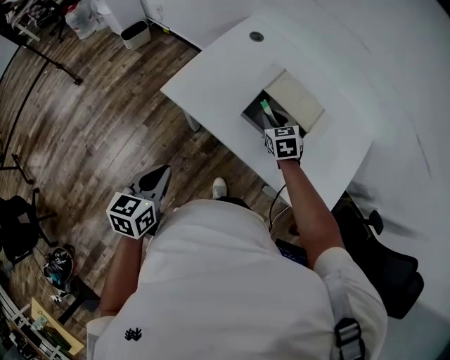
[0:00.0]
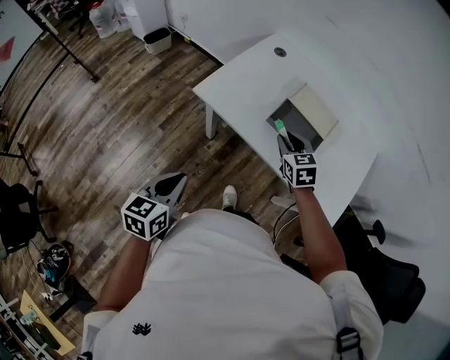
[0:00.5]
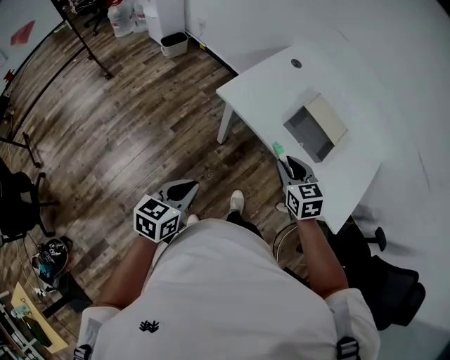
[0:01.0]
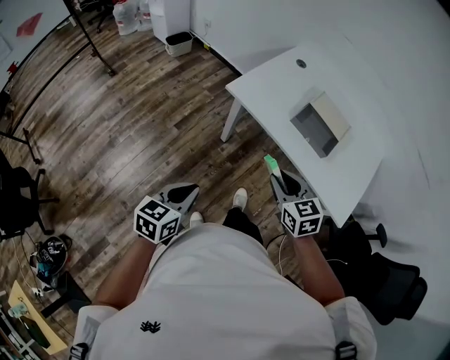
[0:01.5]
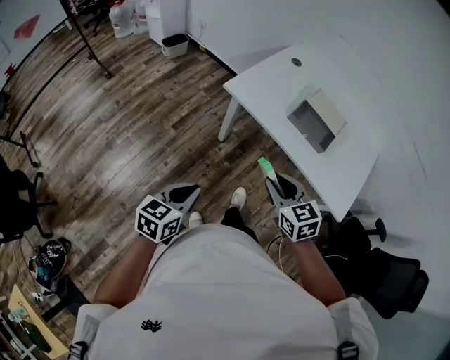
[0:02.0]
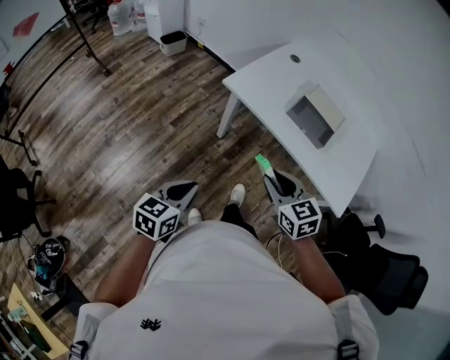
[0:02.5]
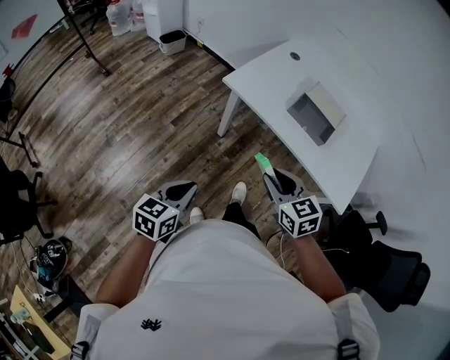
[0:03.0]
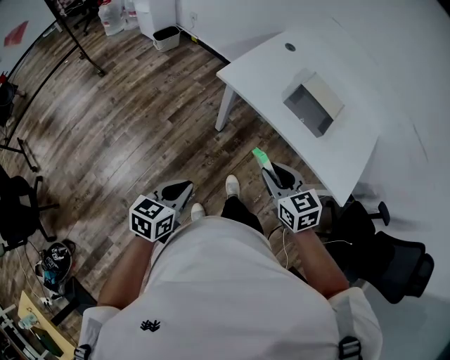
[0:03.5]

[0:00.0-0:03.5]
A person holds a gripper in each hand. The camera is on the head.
0:00.0 to 0:02.0: The right gripper heads backward and to the left, covering about 35 cm. The left gripper travels backward and to the left by some 20 cm.
0:02.0 to 0:03.5: The grippers make only small movements.

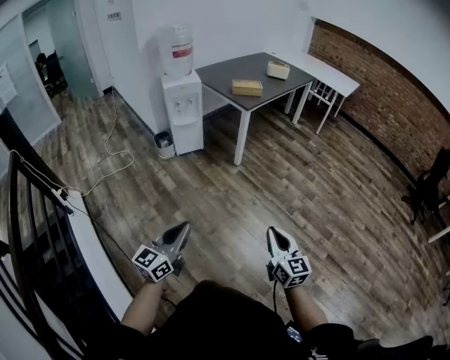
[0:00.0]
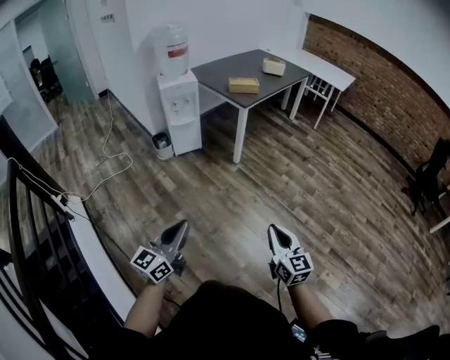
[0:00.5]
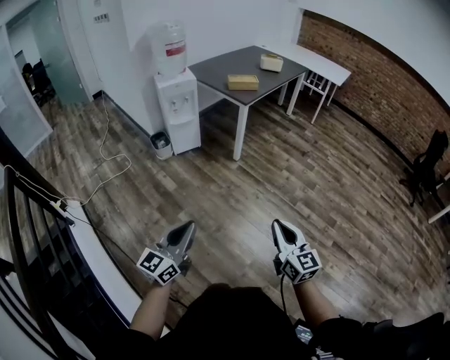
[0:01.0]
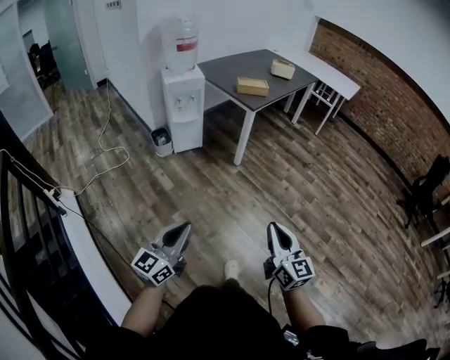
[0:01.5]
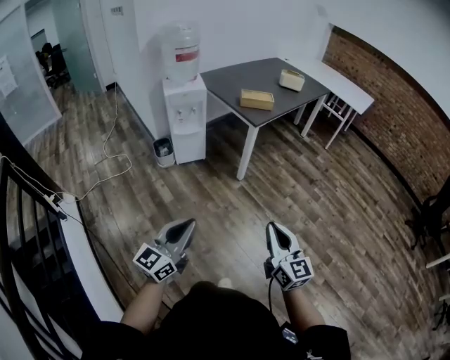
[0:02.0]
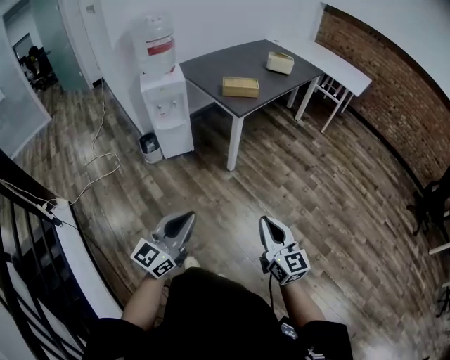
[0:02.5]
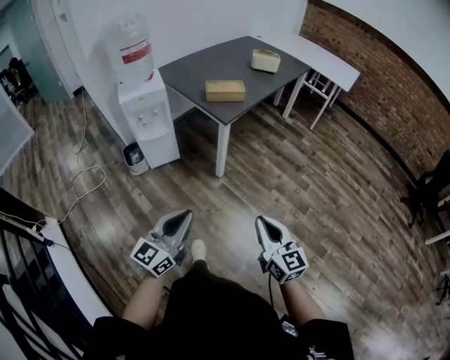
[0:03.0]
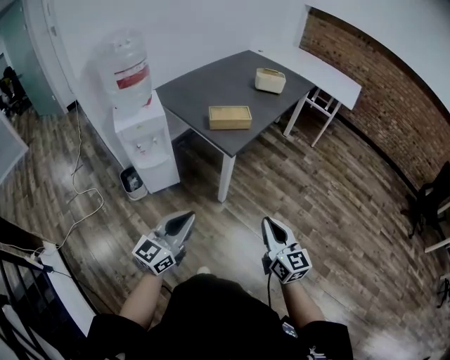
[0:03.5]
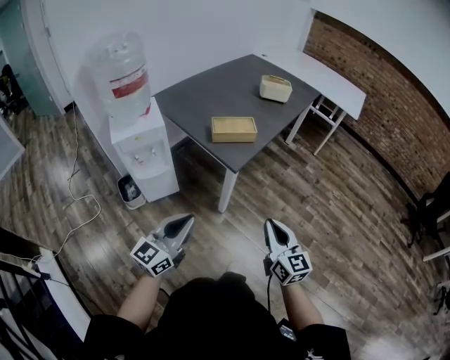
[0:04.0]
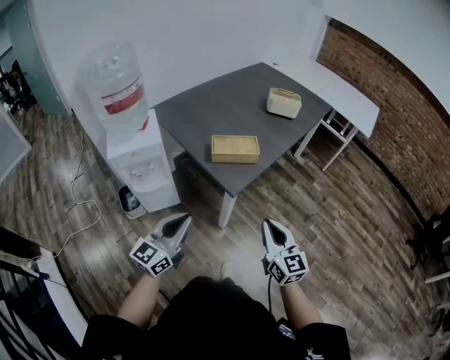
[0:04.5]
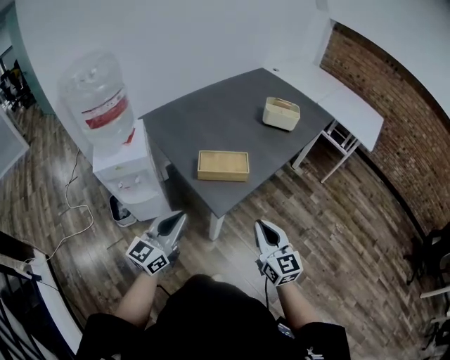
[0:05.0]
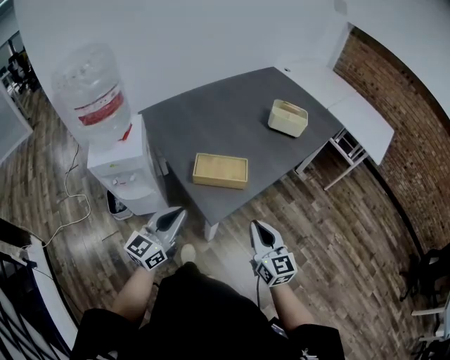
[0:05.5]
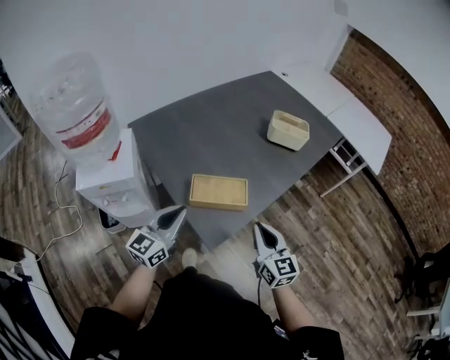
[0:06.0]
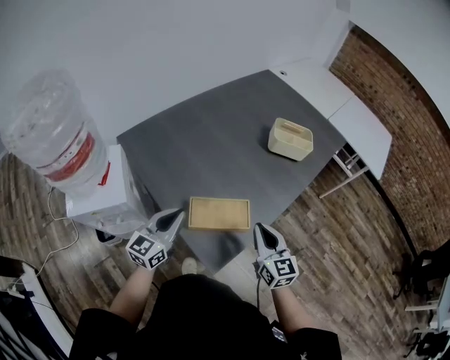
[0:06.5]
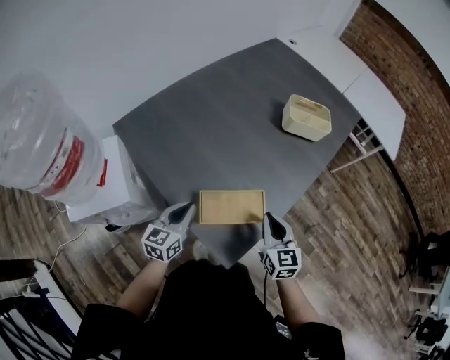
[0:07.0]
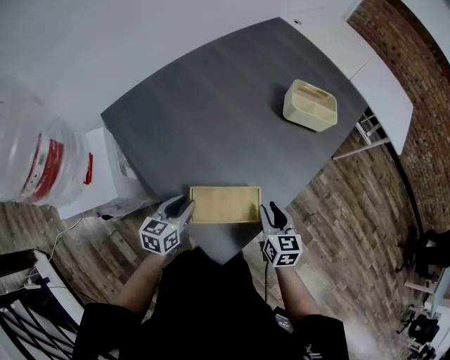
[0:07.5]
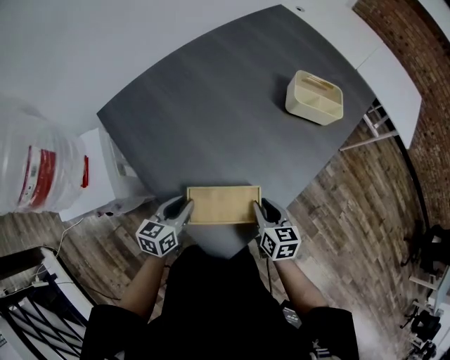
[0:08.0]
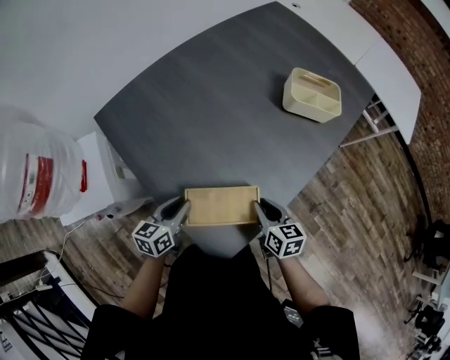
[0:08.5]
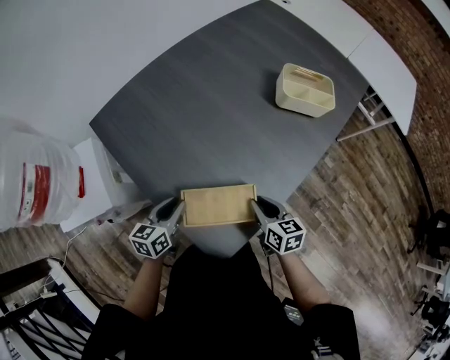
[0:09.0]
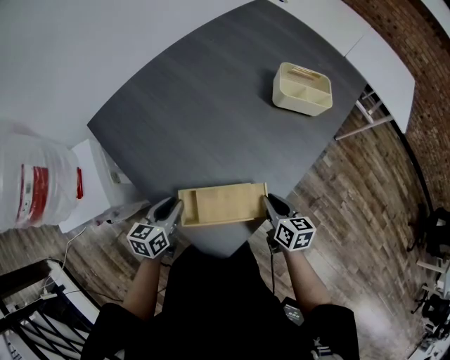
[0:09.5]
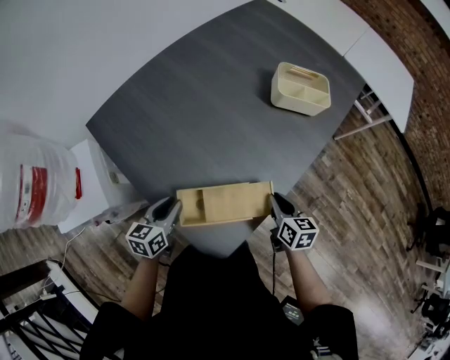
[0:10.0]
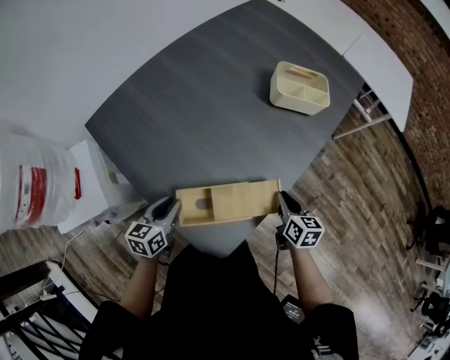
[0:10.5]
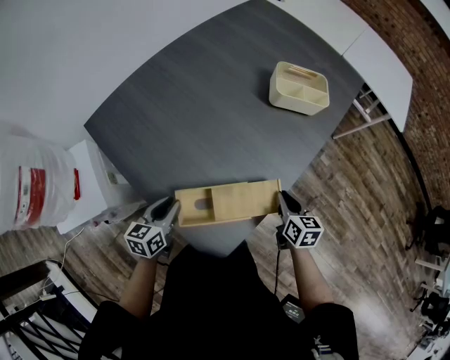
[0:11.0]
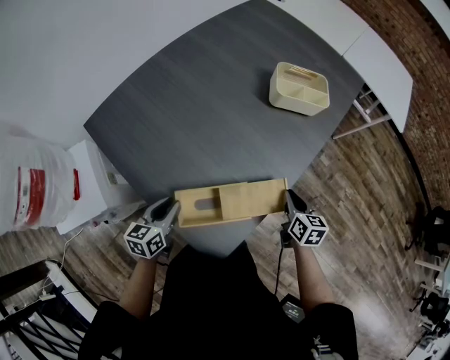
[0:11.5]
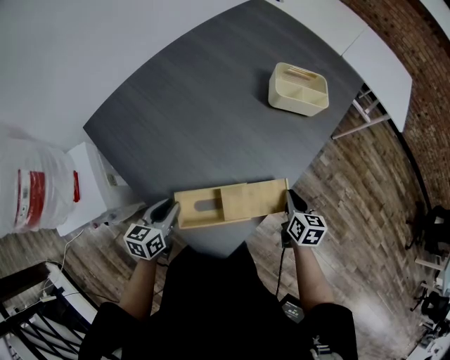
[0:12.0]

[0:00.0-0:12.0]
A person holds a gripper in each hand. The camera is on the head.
0:00.0 to 0:02.0: Both grippers travel together forward, some 15 cm.
0:02.0 to 0:04.0: The grippers both shift forward by some 35 cm.
0:04.0 to 0:06.0: Both grippers travel together forward, approximately 35 cm.
0:06.0 to 0:08.0: Both grippers move downward and forward, about 20 cm. The left gripper rotates roughly 30 degrees, and opens. Meanwhile the right gripper swivels roughly 30 degrees, and opens.
0:08.0 to 0:10.0: The right gripper heads to the right, covering some 5 cm.
0:10.0 to 0:12.0: The right gripper travels to the right by about 5 cm.

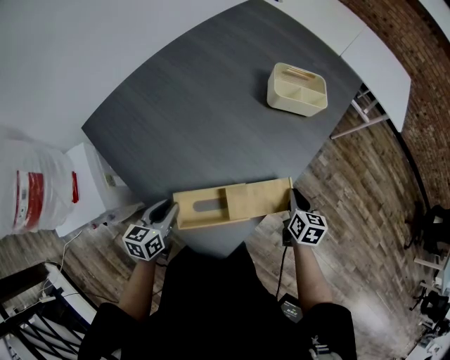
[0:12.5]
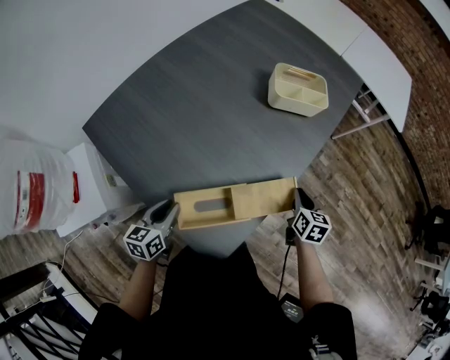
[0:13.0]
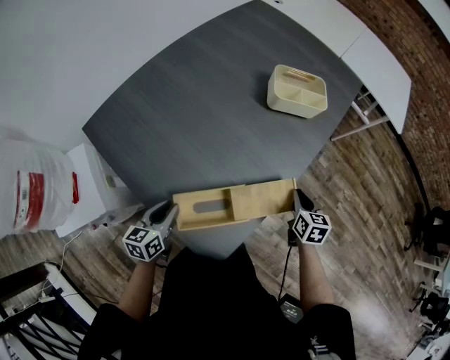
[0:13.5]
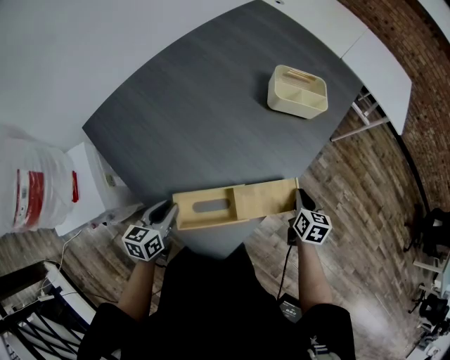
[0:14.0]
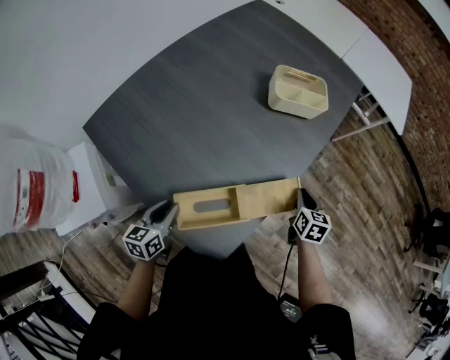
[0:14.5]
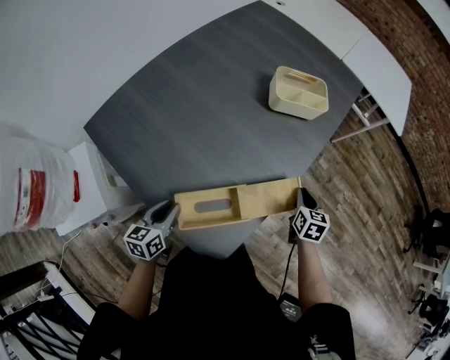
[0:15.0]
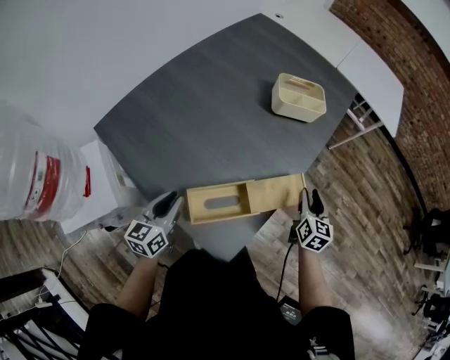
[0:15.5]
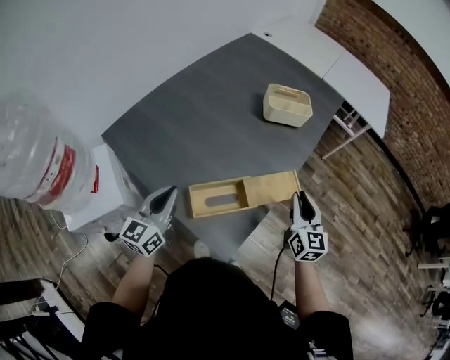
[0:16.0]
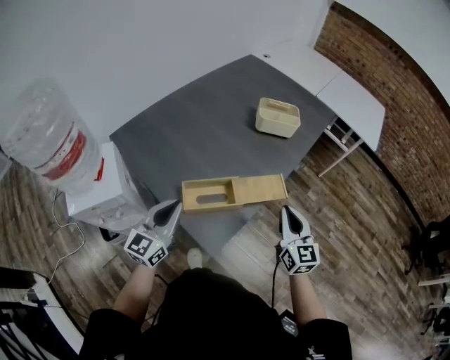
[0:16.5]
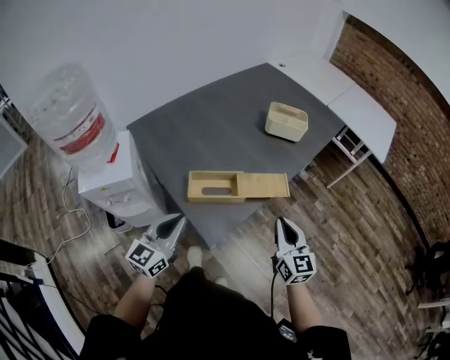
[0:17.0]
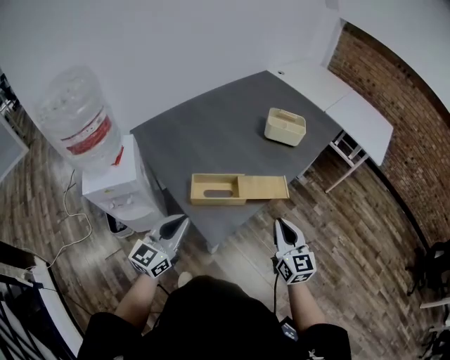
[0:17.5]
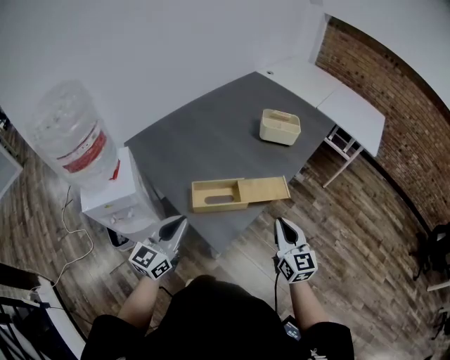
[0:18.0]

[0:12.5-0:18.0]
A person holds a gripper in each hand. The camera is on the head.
0:12.5 to 0:14.5: The grippers make only small movements.
0:14.5 to 0:16.0: The right gripper heads upward and backward, covering roughly 15 cm, points its fingers some 30 degrees further upward, and opens, then closes again, while the left gripper heads upward, covering roughly 15 cm, rotates about 30 degrees, and closes.
0:16.0 to 0:18.0: The left gripper travels backward and to the right by roughly 15 cm, while the right gripper goes roughly 10 cm backward.

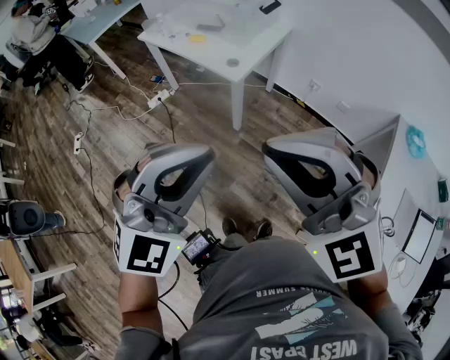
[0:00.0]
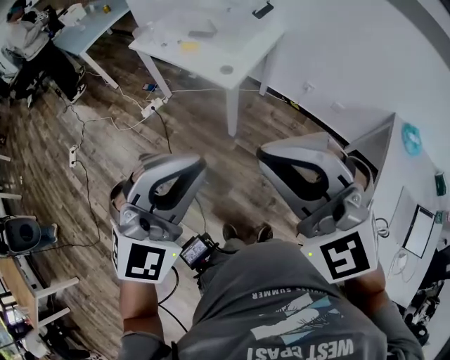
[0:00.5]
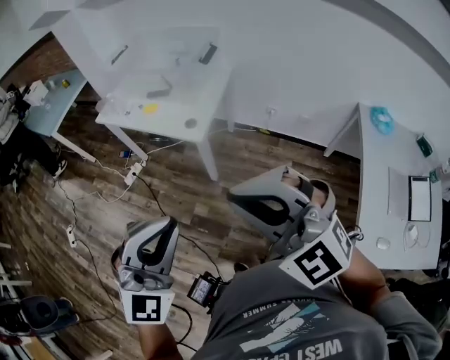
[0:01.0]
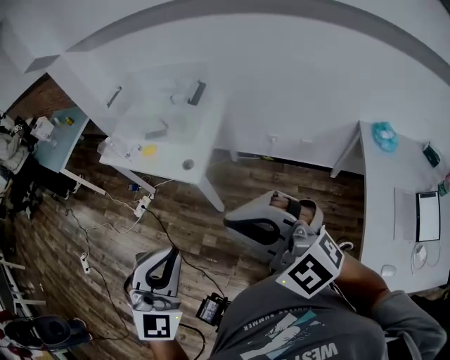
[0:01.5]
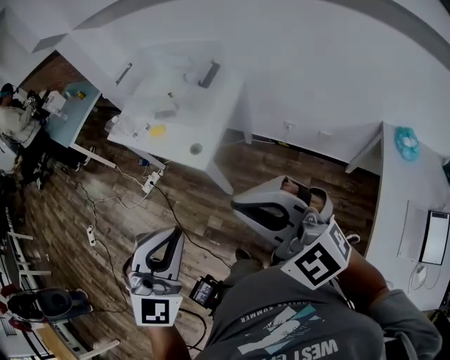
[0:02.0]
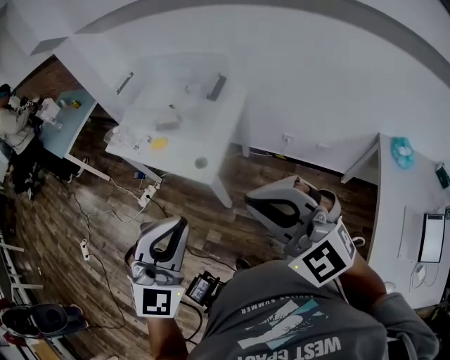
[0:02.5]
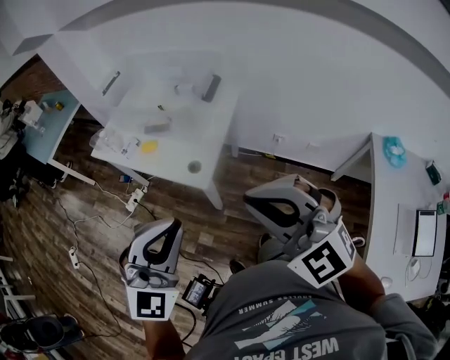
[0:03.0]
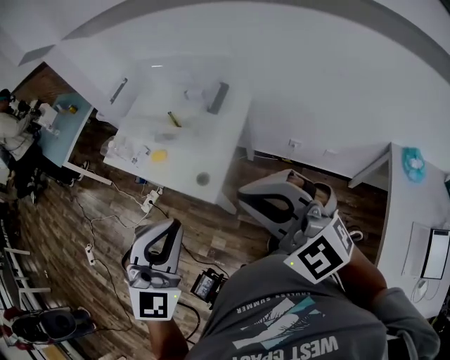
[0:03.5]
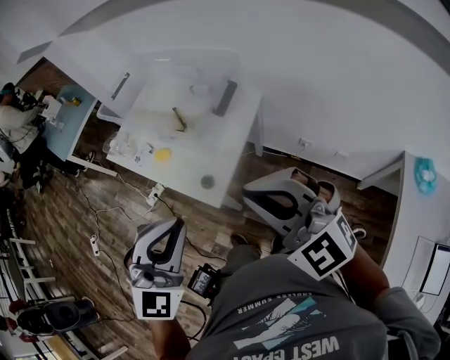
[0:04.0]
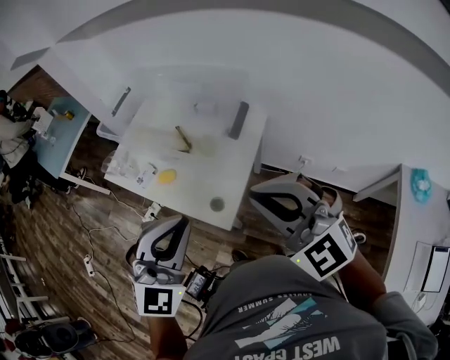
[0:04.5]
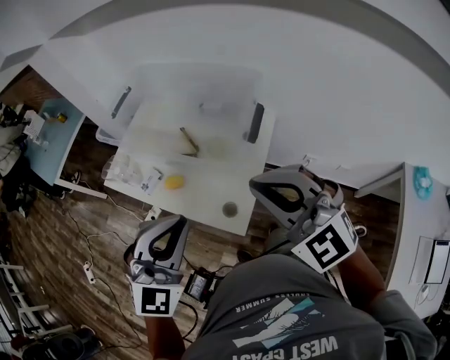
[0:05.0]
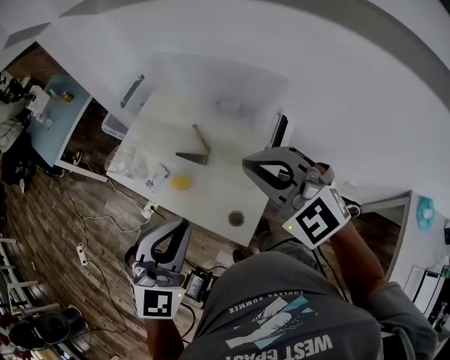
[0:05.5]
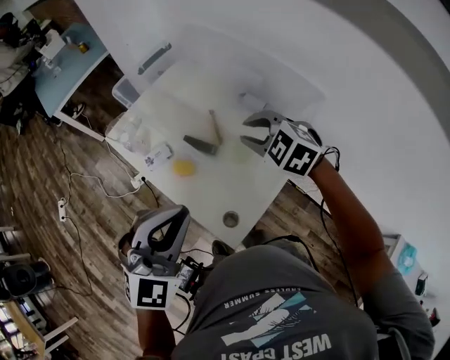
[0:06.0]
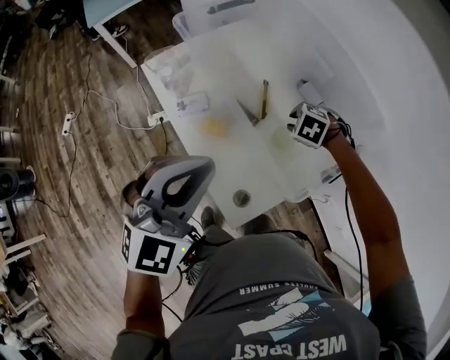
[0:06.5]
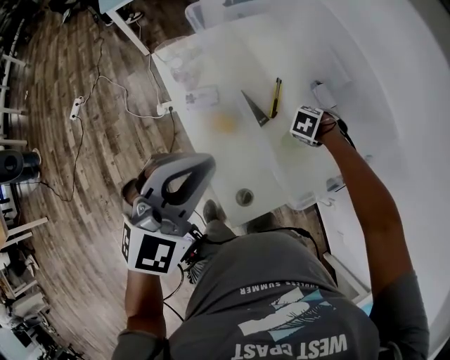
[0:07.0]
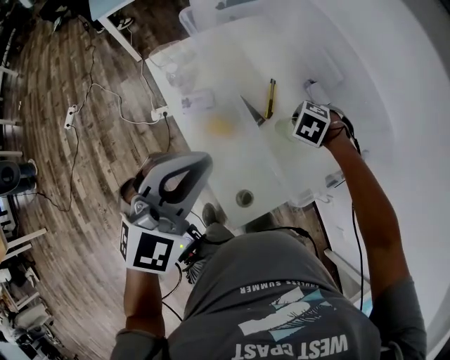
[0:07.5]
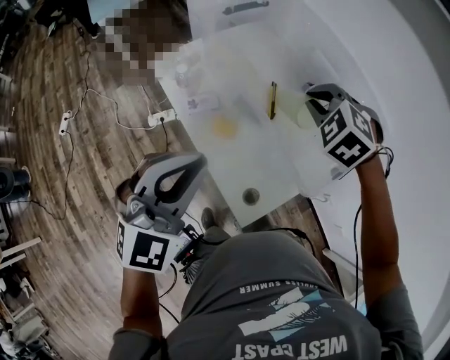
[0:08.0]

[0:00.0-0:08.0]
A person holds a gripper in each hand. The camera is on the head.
0:00.0 to 0:02.0: Both grippers travel together forward and to the right, roughly 20 cm.
0:02.0 to 0:04.0: The grippers both shift forward by some 25 cm.
0:04.0 to 0:06.0: The left gripper travels forward and to the left by some 30 cm. Meanwhile the right gripper goes roughly 40 cm forward, tilts its fingers roughly 40 degrees downward, and opens.
0:06.0 to 0:08.0: The right gripper goes downward and returns, some 25 cm each way, and swivels roughly 20 degrees, while the left gripper ends up roughly 10 cm from where it was.
